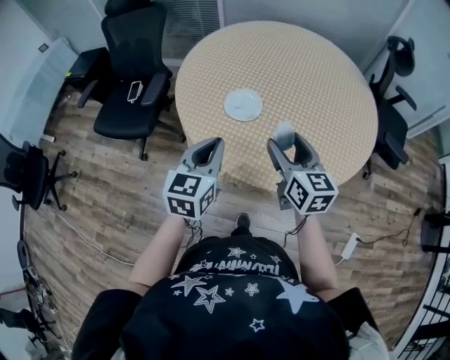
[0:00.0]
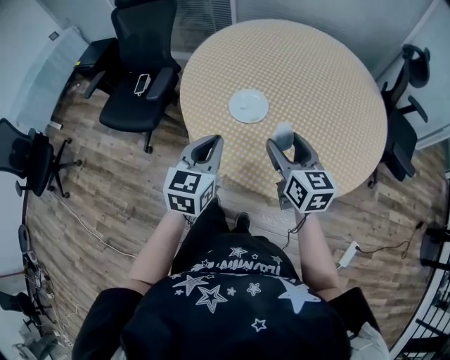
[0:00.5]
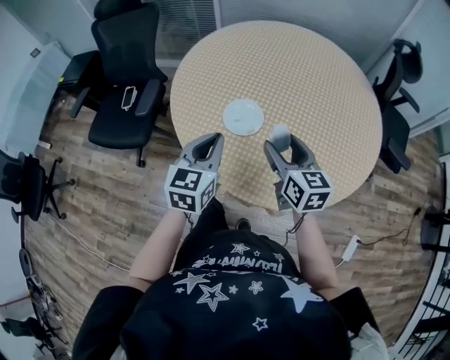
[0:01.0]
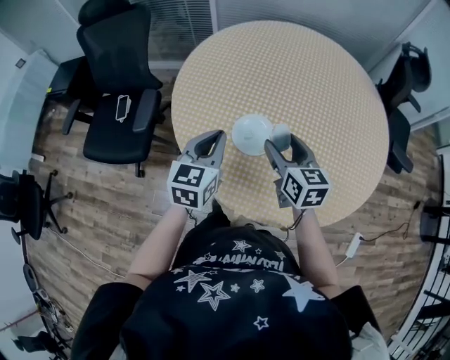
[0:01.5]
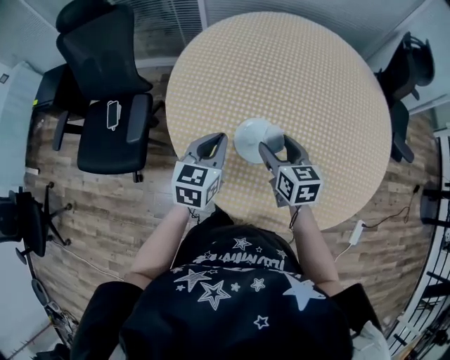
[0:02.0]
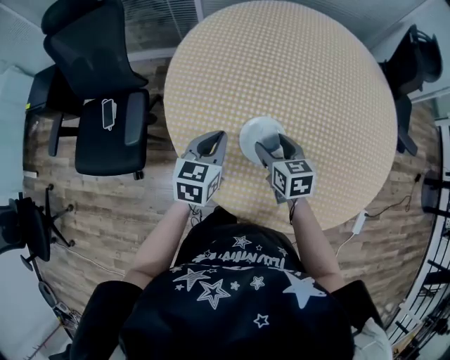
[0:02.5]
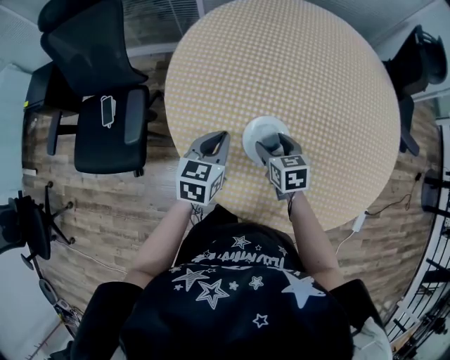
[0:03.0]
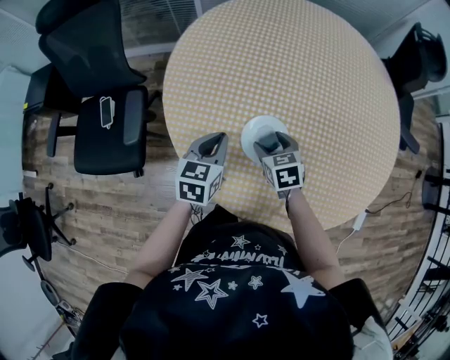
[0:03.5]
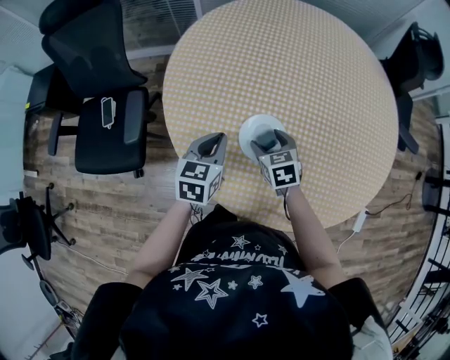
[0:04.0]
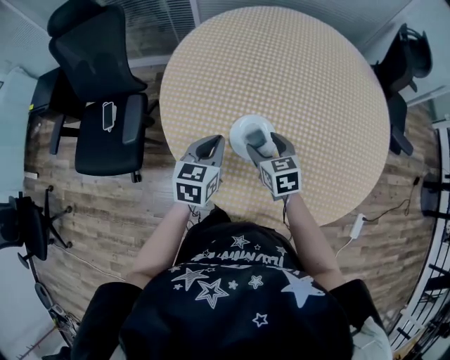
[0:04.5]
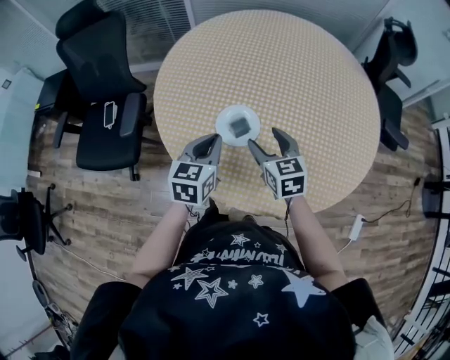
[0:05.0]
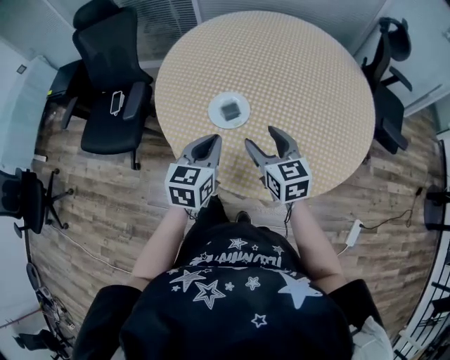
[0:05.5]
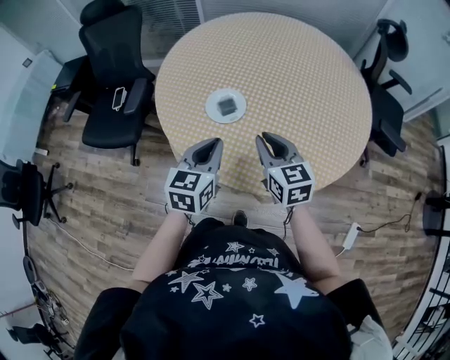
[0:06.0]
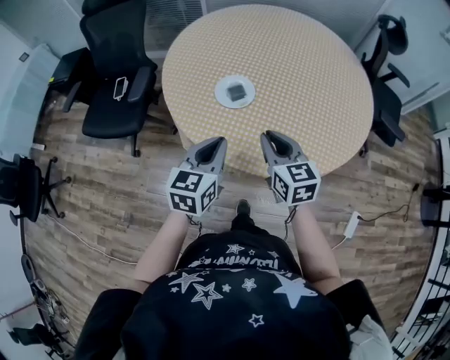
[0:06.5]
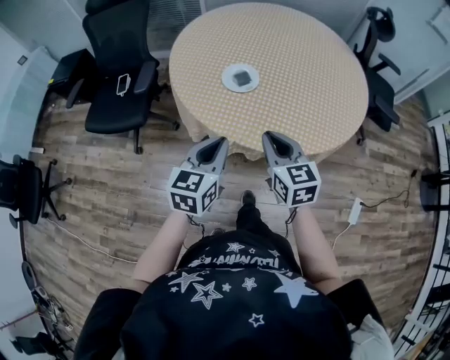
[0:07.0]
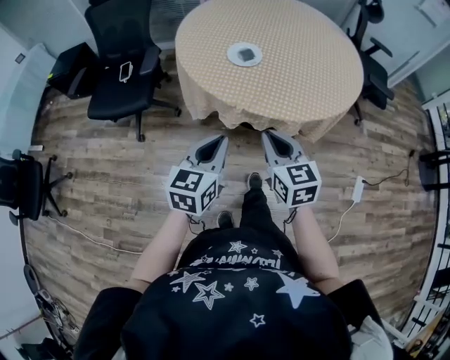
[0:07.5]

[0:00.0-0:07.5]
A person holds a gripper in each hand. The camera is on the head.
0:00.0 to 0:02.0: The left gripper heads forward, covering about 25 cm. The right gripper travels forward, downward and to the left by about 25 cm.
0:02.0 to 0:04.0: The right gripper travels downward by some 10 cm, and changes its angle by approximately 20 degrees. The left gripper travels downward by roughly 5 cm.
0:04.0 to 0:05.5: The left gripper goes approximately 20 cm backward, to the right and upward. Meanwhile the right gripper travels upward, backward and to the right by approximately 25 cm, and changes its angle by some 30 degrees.
0:05.5 to 0:07.5: Both grippers move backward, approximately 30 cm. The right gripper closes up.

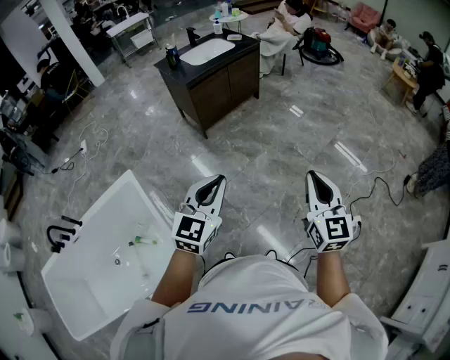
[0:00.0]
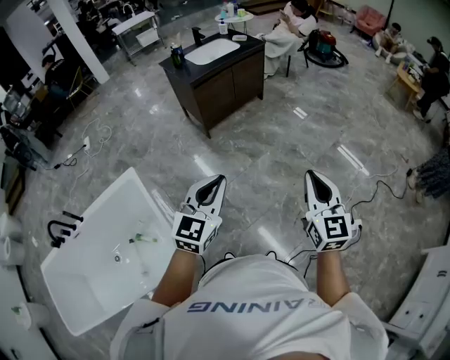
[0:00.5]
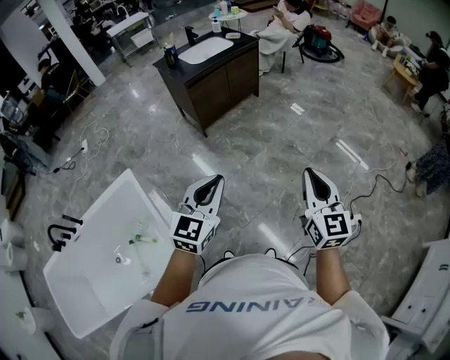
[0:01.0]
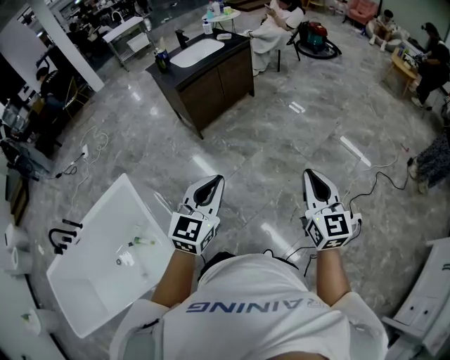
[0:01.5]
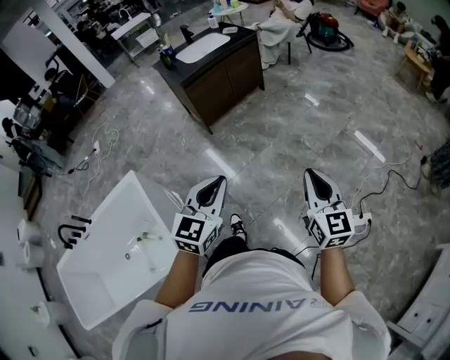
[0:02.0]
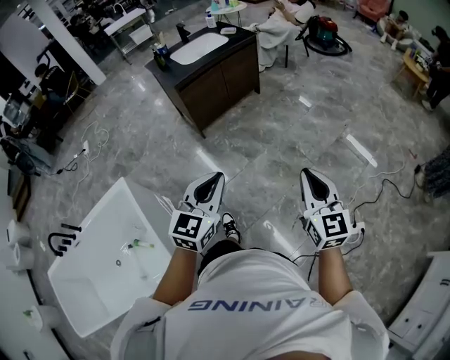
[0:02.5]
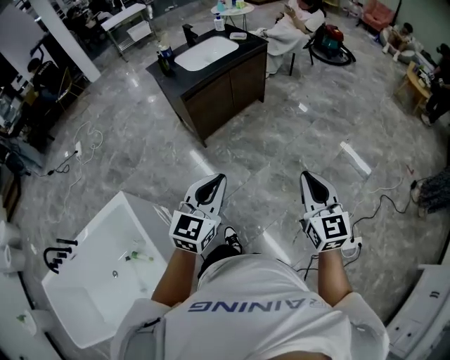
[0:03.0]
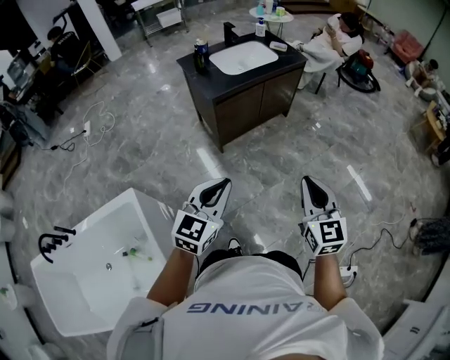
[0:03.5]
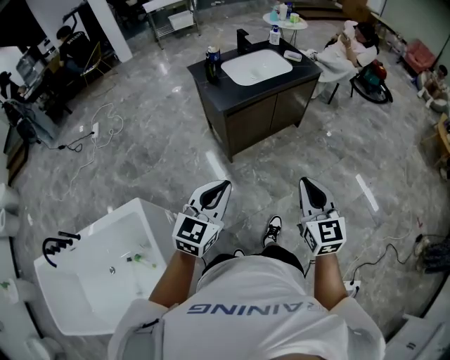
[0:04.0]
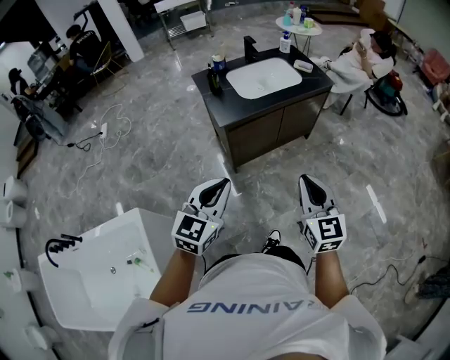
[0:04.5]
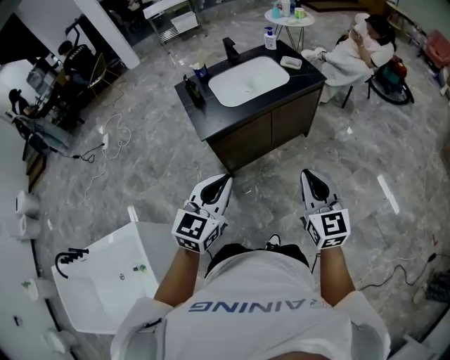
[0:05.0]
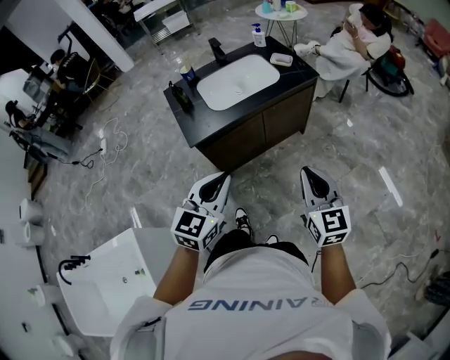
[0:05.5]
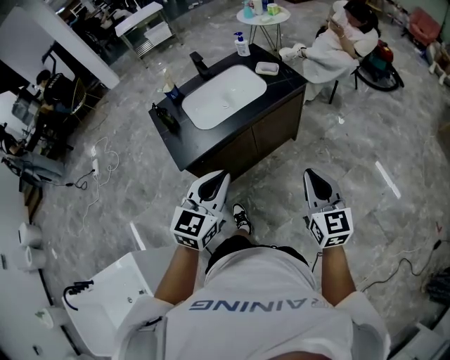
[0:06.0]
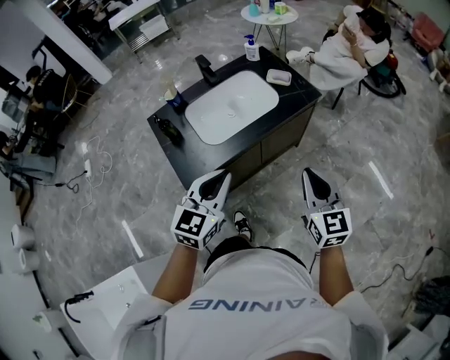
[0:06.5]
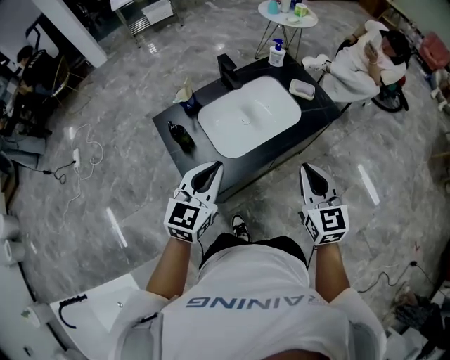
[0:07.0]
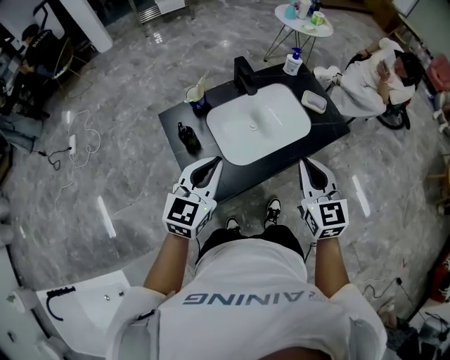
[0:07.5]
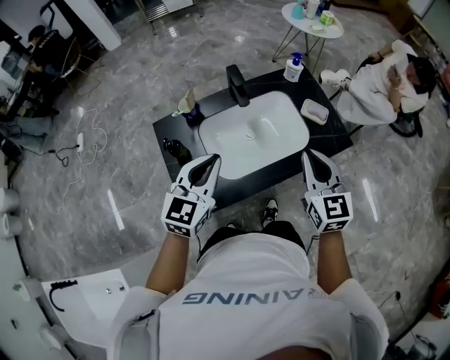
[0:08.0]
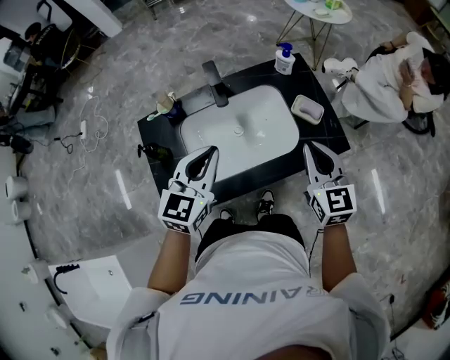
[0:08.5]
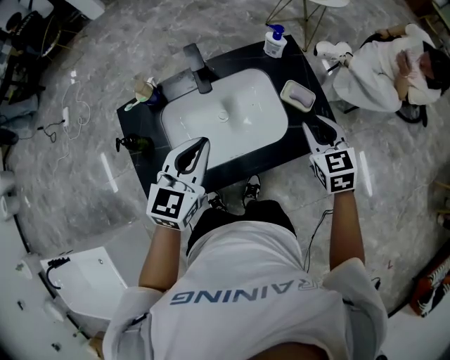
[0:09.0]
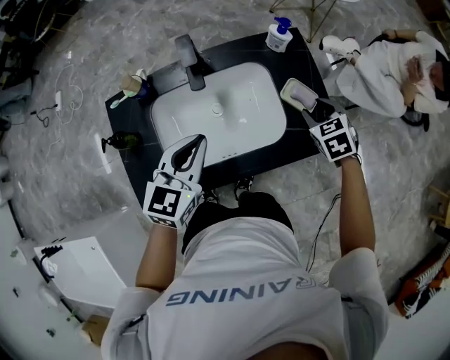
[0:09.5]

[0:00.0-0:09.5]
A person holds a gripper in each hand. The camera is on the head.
0:00.0 to 0:02.0: Both grippers move to the right, roughly 10 cm.
0:02.0 to 0:04.0: The pair of grippers is taken forward and to the left, approximately 40 cm.
0:04.0 to 0:05.5: The two grippers go some 30 cm forward and to the right.
0:05.5 to 0:07.5: Both grippers move forward and to the left, some 40 cm.
0:07.5 to 0:09.5: The left gripper is displaced forward, to the right and downward by some 25 cm, while the right gripper heads forward, to the right and downward, covering some 40 cm, tips its fingers downward by some 40 degrees, and opens up.

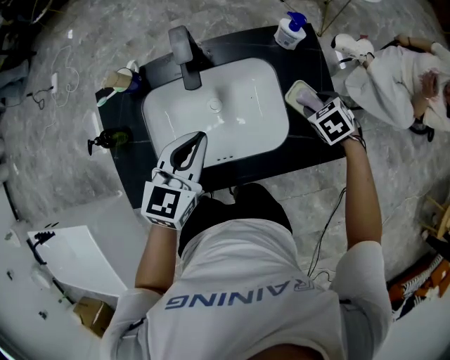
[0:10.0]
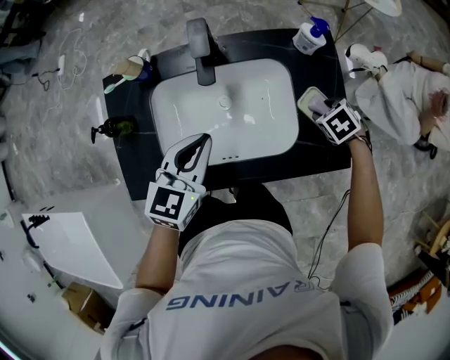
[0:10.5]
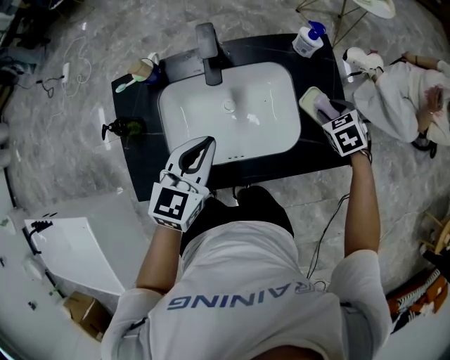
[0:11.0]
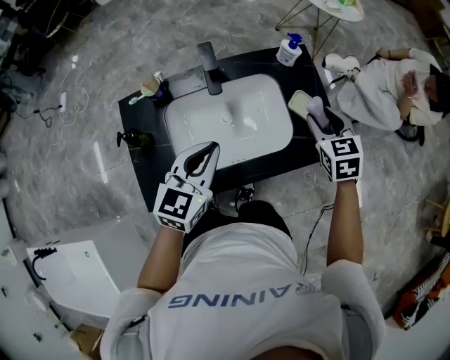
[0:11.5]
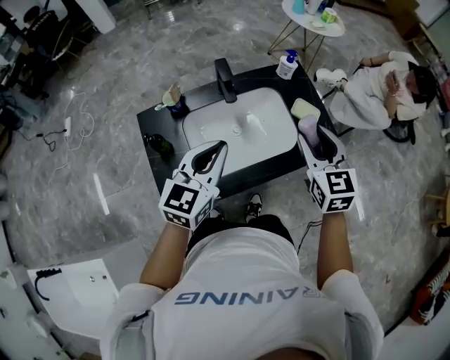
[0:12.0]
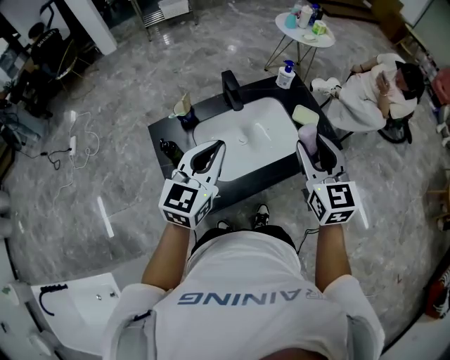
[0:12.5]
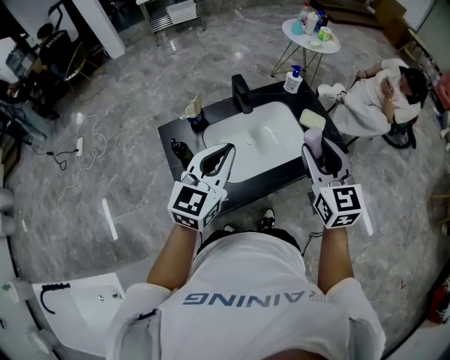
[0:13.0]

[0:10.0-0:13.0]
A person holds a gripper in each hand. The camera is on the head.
0:10.0 to 0:11.5: The left gripper heads upward, covering some 5 cm. Meanwhile the right gripper travels upward by about 20 cm, and tips its fingers upward by about 30 degrees.
0:11.5 to 0:13.0: The left gripper travels upward, backward and to the left by about 15 cm, while the right gripper travels backward, upward and to the left by roughly 30 cm, and turns by roughly 30 degrees.

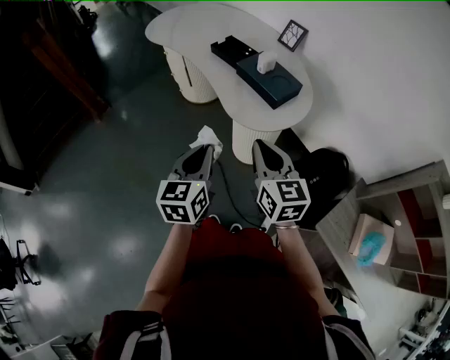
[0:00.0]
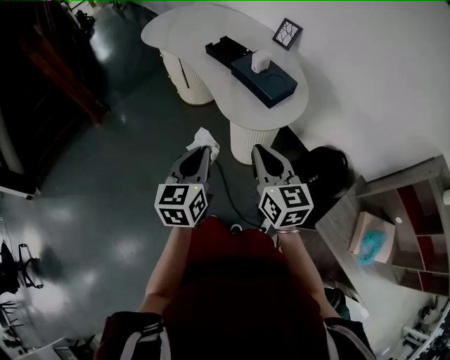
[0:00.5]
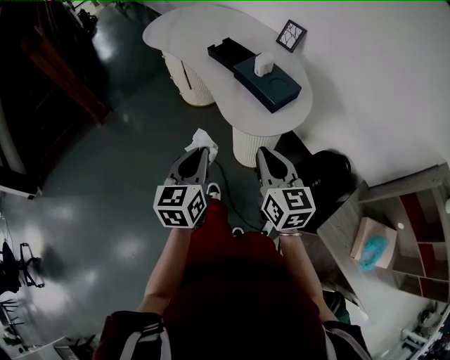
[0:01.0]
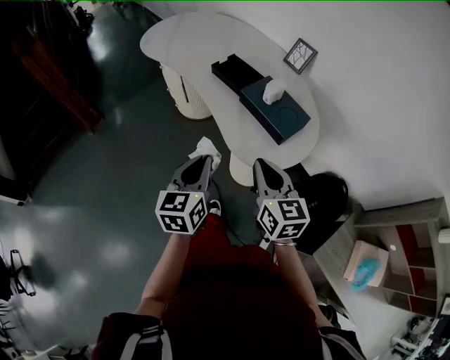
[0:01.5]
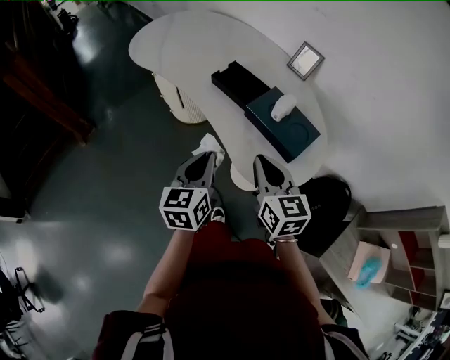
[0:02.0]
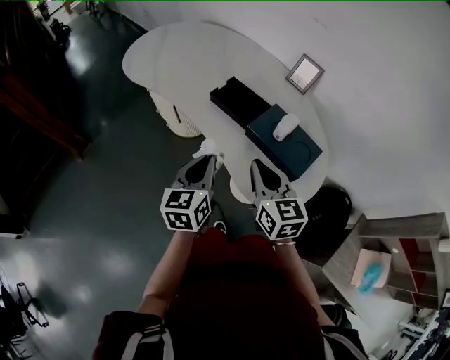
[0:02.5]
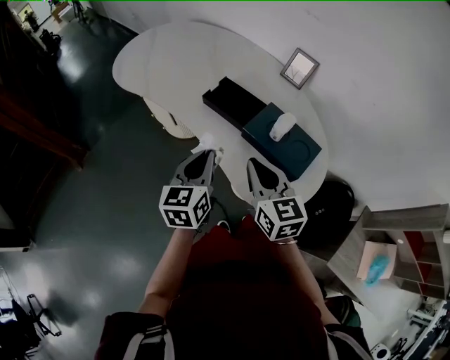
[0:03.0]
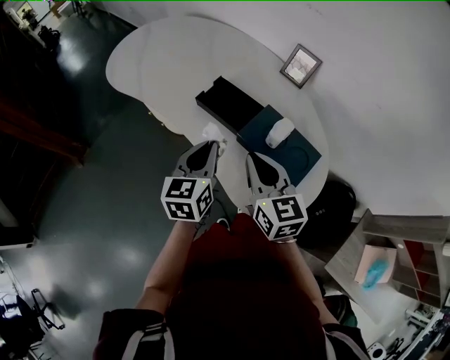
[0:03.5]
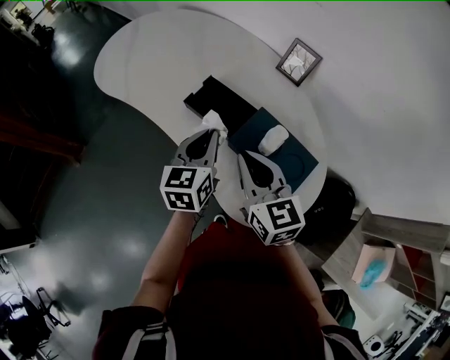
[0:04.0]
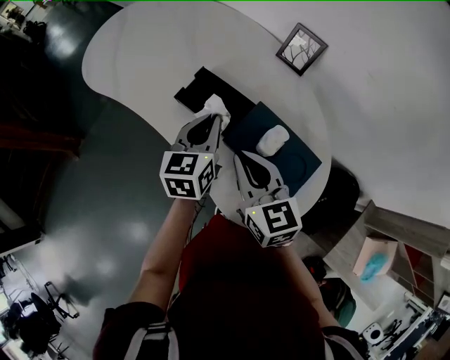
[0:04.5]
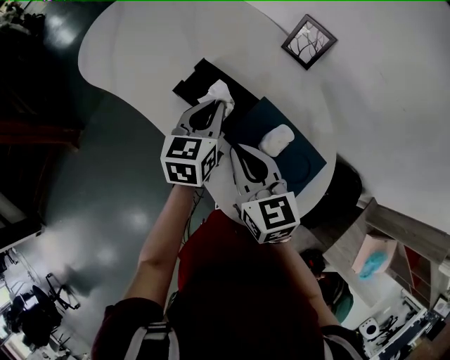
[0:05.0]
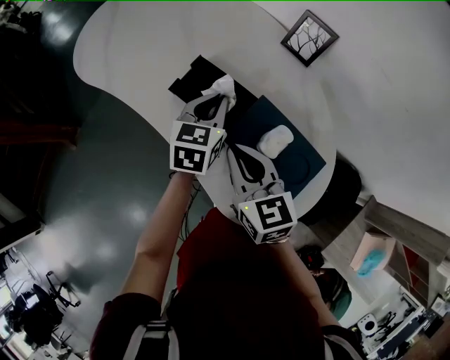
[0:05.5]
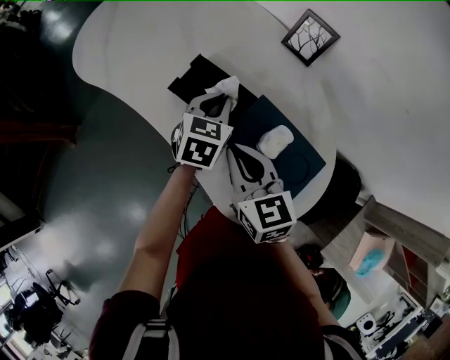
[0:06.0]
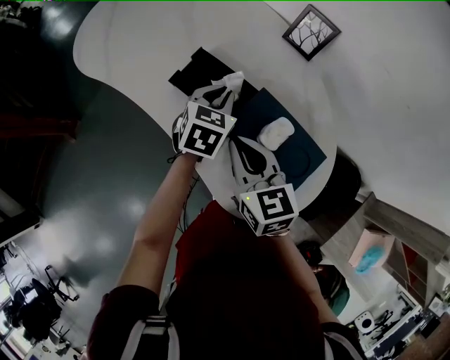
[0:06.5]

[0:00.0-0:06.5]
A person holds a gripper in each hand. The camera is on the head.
0:00.0 to 0:02.0: Both grippers move forward, about 20 cm.
0:02.0 to 0:04.5: The left gripper shifts about 25 cm forward. The right gripper shifts approximately 15 cm forward.
0:04.5 to 0:06.5: The left gripper goes approximately 5 cm downward, and turns by about 30 degrees.
